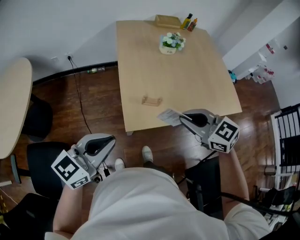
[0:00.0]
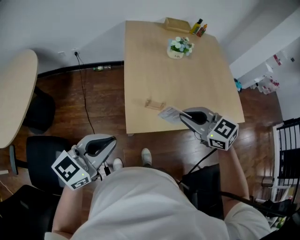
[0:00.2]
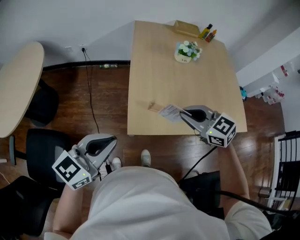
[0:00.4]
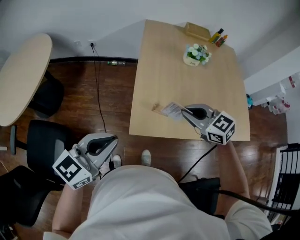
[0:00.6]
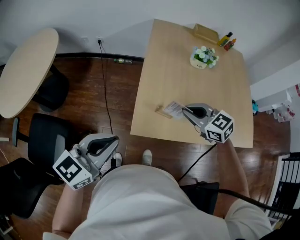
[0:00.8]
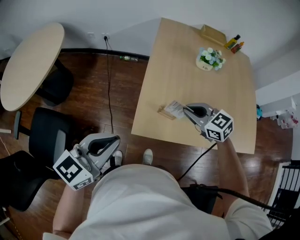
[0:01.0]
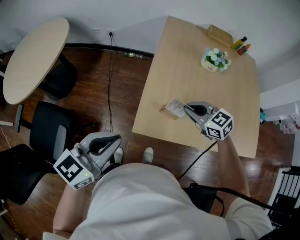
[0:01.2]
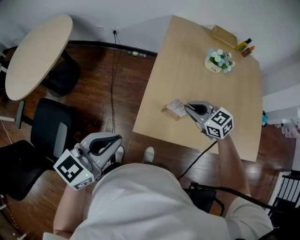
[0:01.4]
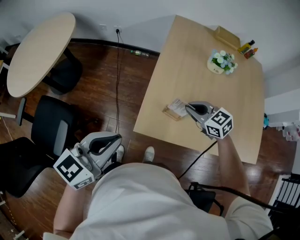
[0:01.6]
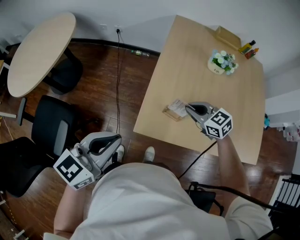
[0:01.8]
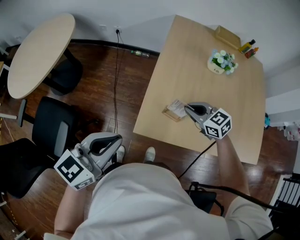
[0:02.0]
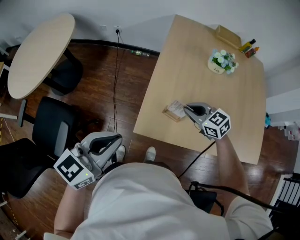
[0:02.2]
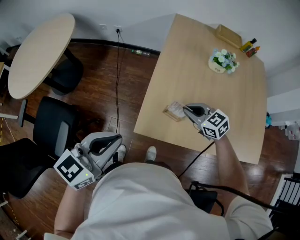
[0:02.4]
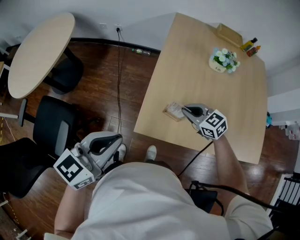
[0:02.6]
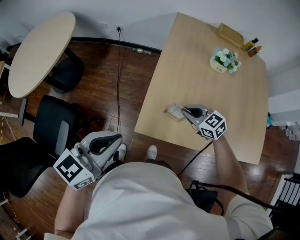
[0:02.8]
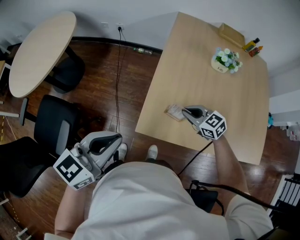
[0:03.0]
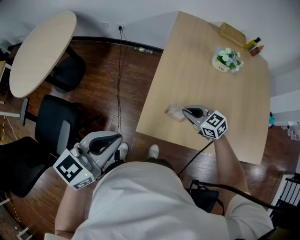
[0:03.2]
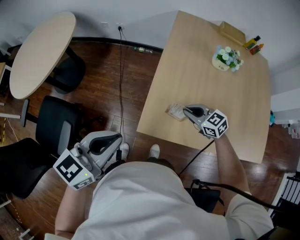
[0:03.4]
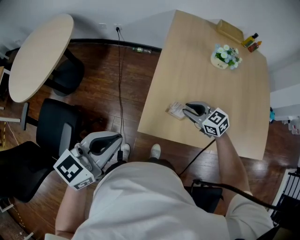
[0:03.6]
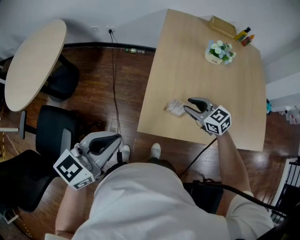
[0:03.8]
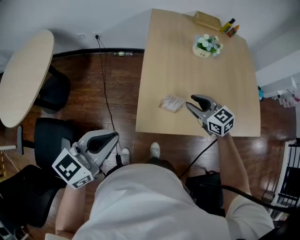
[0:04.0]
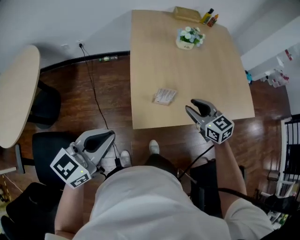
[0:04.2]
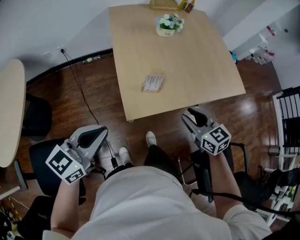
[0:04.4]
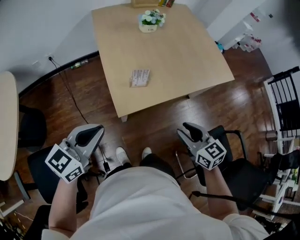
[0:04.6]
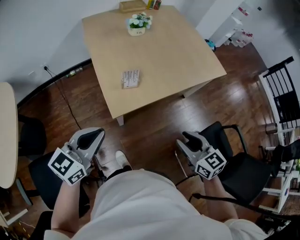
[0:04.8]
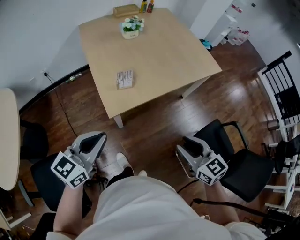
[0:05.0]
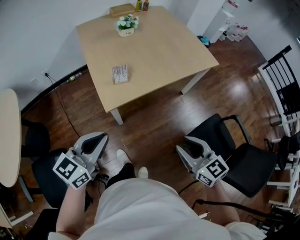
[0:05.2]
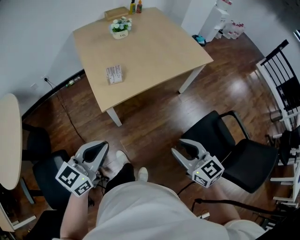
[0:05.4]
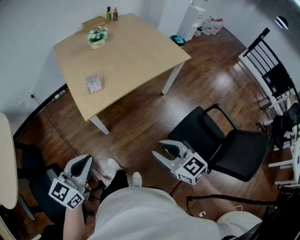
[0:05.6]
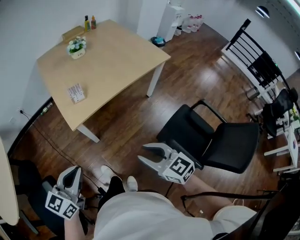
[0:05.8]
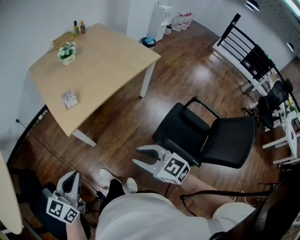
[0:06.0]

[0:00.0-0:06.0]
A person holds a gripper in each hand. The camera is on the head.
0.0 to 1.6 s: The left gripper turns by about 30 degrees. Meanwhile the right gripper travels forward and downward by approximately 20 cm, and swivels some 20 degrees.
1.6 to 3.0 s: The right gripper heads downward, covering approximately 5 cm.
3.0 to 4.4 s: The right gripper ends up roughly 20 cm from where it was, swivels roughly 50 degrees, and opens. Meanwhile the left gripper ends up some 5 cm from where it was, and rotates approximately 30 degrees.
4.4 to 6.0 s: The right gripper moves backward, about 30 cm, while the left gripper moves backward and to the right, about 25 cm.

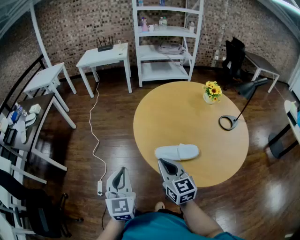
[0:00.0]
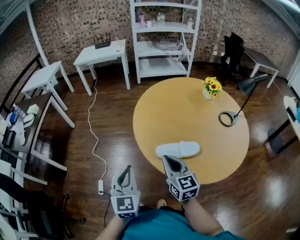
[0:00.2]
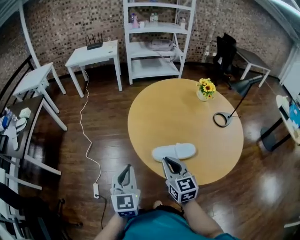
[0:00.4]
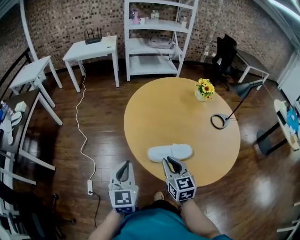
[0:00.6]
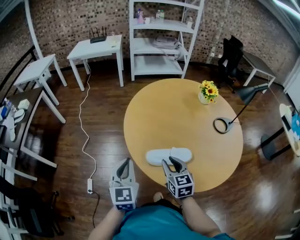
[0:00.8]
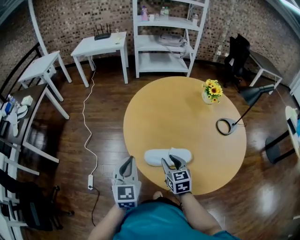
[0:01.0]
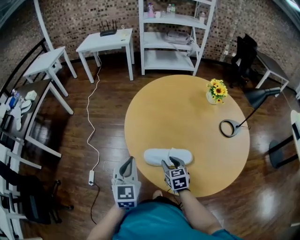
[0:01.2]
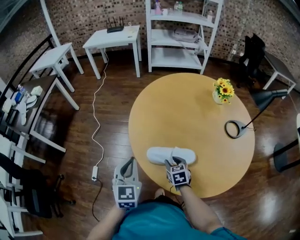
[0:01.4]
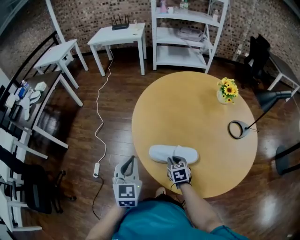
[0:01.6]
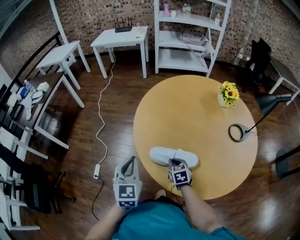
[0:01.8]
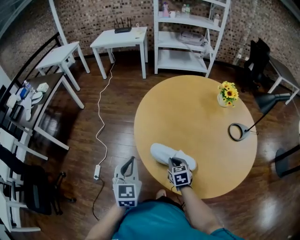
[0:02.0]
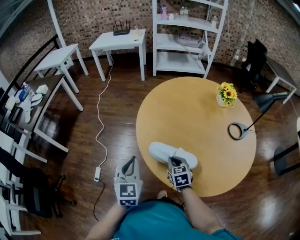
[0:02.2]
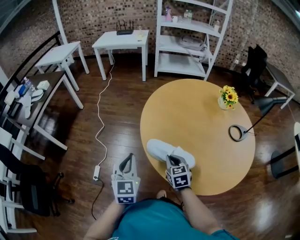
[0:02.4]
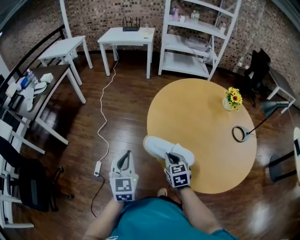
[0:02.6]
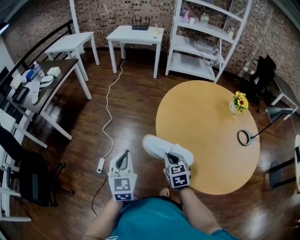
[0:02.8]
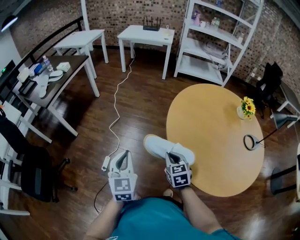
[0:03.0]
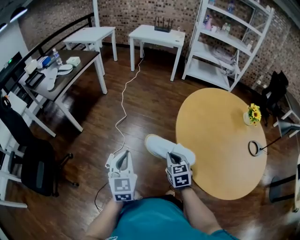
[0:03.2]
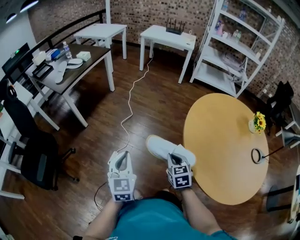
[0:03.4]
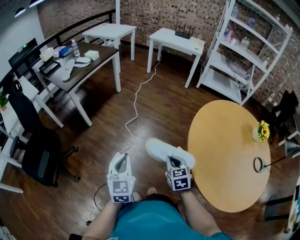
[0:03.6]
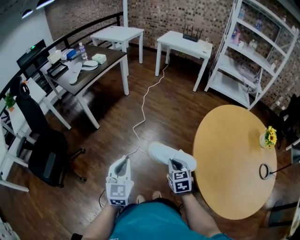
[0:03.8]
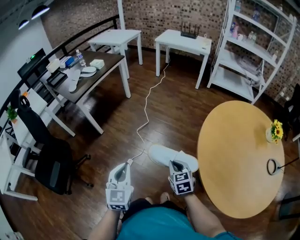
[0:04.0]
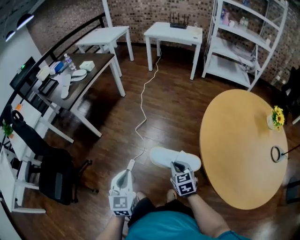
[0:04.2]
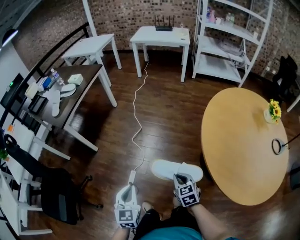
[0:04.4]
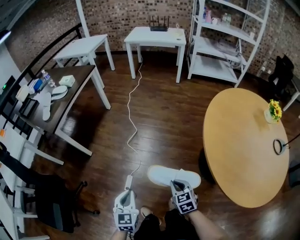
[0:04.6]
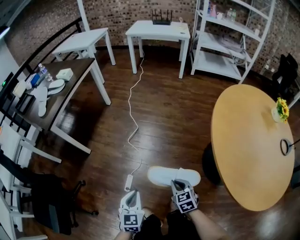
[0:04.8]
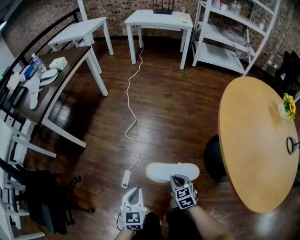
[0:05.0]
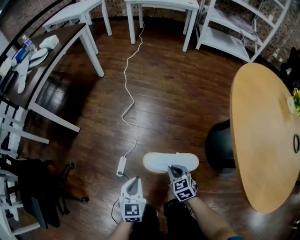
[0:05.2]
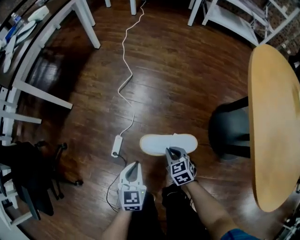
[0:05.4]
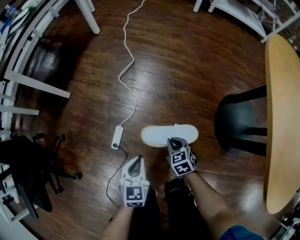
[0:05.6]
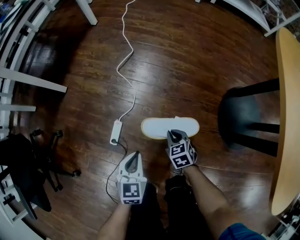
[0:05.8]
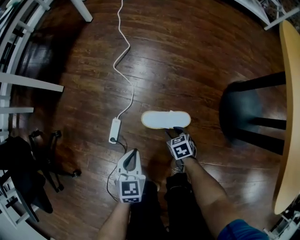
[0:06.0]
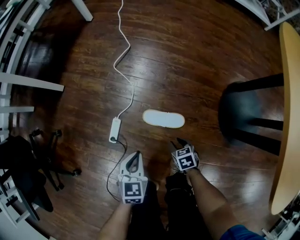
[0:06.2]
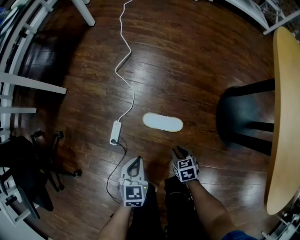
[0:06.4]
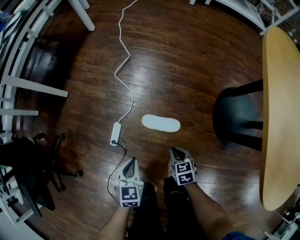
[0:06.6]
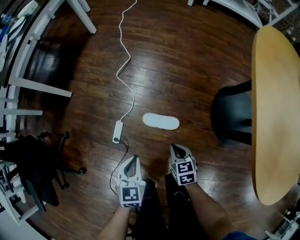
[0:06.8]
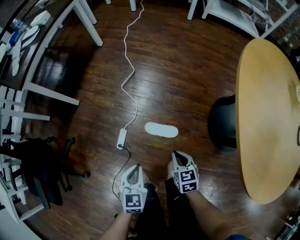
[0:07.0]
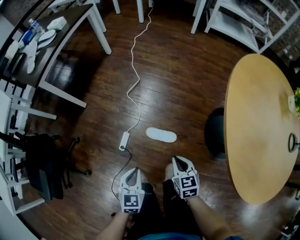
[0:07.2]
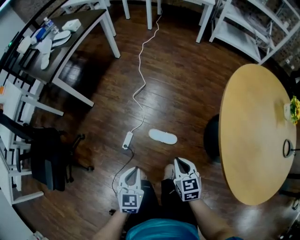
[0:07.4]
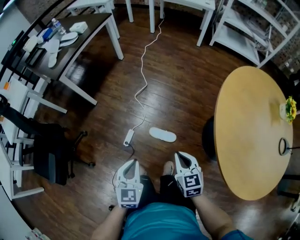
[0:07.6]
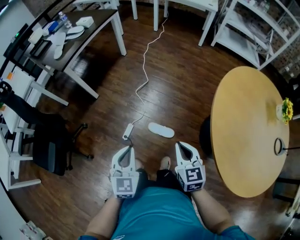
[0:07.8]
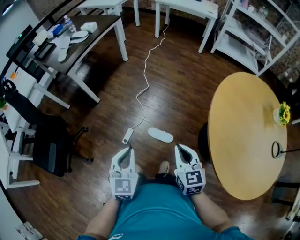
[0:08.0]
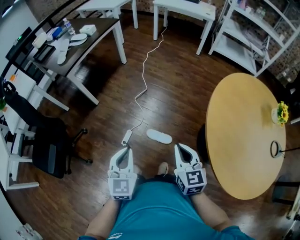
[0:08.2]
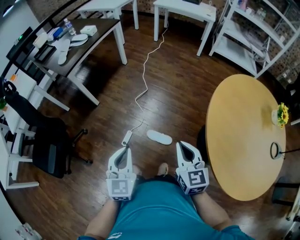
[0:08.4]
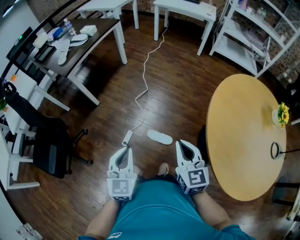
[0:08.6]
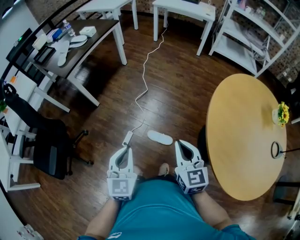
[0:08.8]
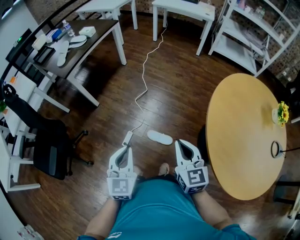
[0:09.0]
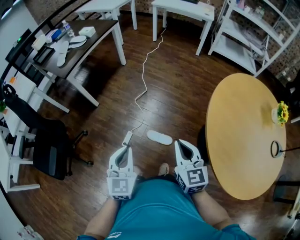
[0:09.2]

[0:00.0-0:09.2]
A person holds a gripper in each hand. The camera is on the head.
0.0 to 1.6 s: The right gripper shifts approximately 30 cm downward, to the right and forward, and tips its fingers downward by roughly 40 degrees, while the left gripper travels to the right, forward and downward by some 15 cm.
1.6 to 3.0 s: The left gripper travels to the left by roughly 25 cm. The right gripper travels to the left and upward by approximately 30 cm.
3.0 to 4.6 s: Both grippers move to the left, downward and forward, some 30 cm.
4.6 to 6.2 s: The two grippers go about 50 cm downward. The right gripper changes its angle by some 30 degrees, and opens up.
6.2 to 7.6 s: Both grippers travel together upward, approximately 50 cm. The right gripper points its fingers roughly 30 degrees further upward, and closes up.
7.6 to 9.2 s: The grippers both shift upward by some 15 cm.

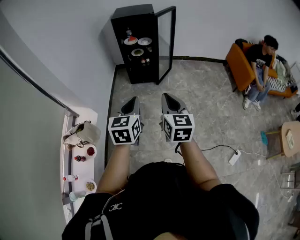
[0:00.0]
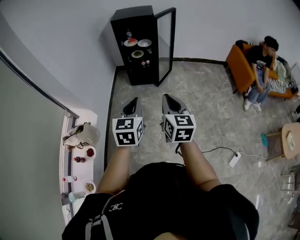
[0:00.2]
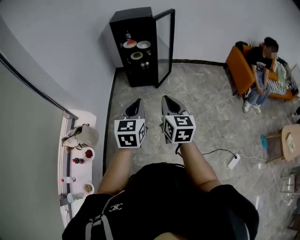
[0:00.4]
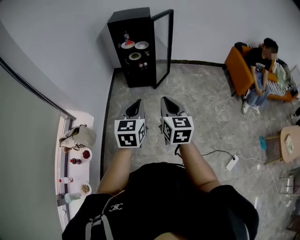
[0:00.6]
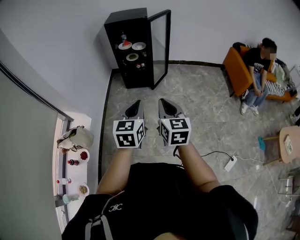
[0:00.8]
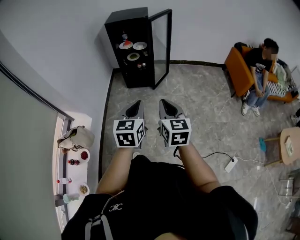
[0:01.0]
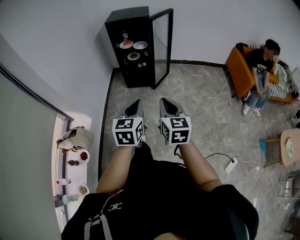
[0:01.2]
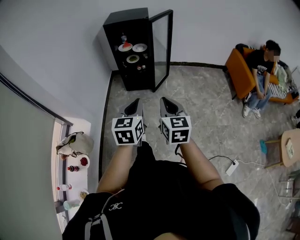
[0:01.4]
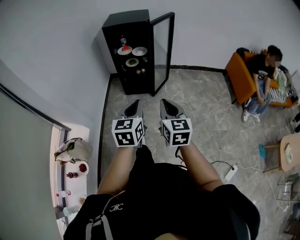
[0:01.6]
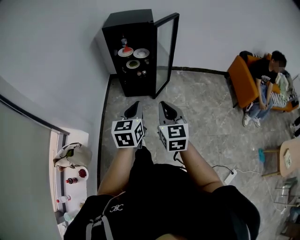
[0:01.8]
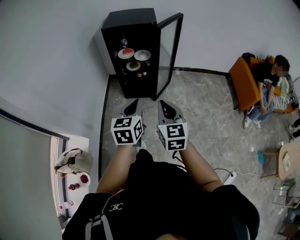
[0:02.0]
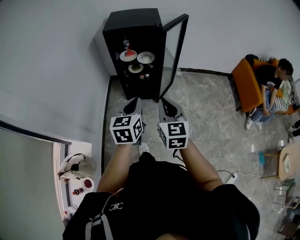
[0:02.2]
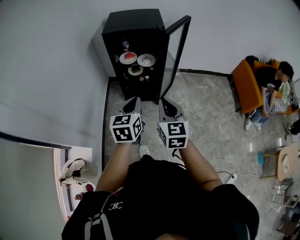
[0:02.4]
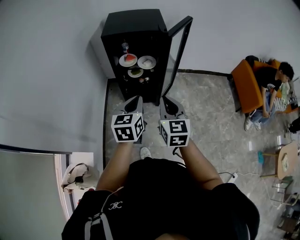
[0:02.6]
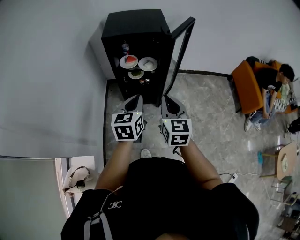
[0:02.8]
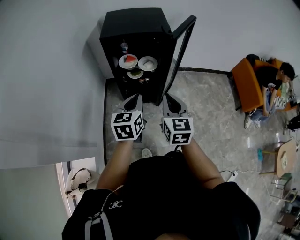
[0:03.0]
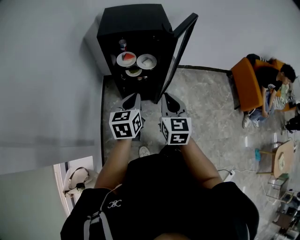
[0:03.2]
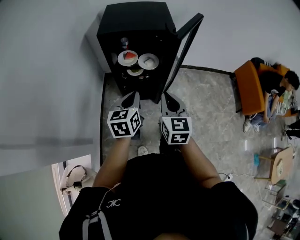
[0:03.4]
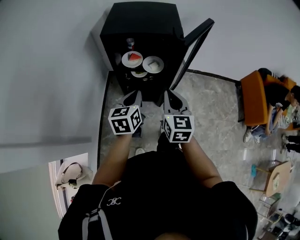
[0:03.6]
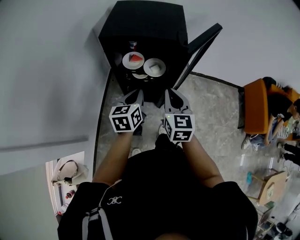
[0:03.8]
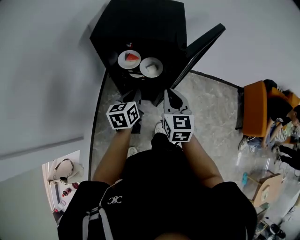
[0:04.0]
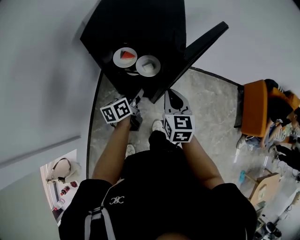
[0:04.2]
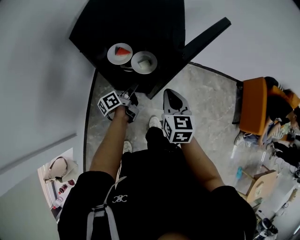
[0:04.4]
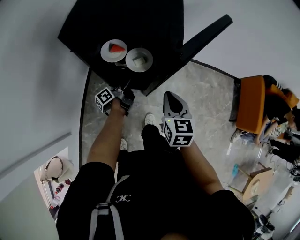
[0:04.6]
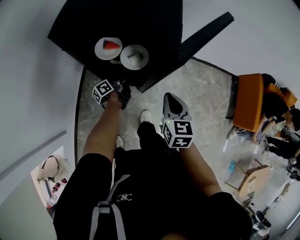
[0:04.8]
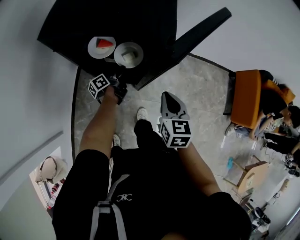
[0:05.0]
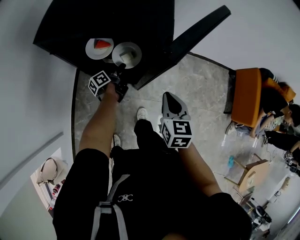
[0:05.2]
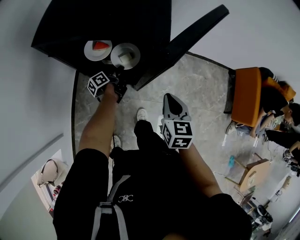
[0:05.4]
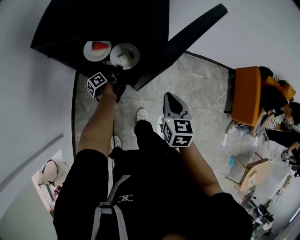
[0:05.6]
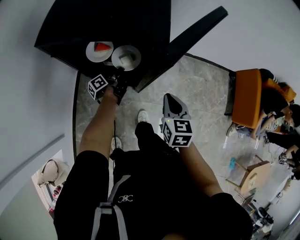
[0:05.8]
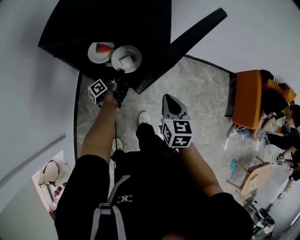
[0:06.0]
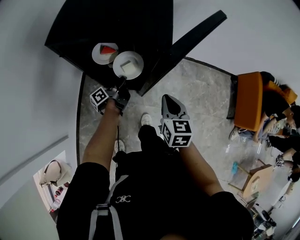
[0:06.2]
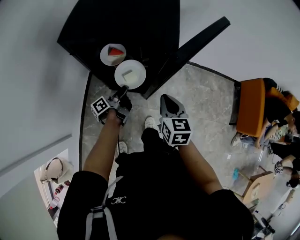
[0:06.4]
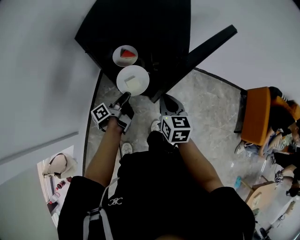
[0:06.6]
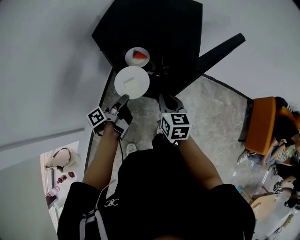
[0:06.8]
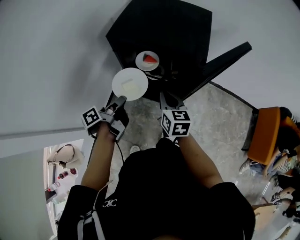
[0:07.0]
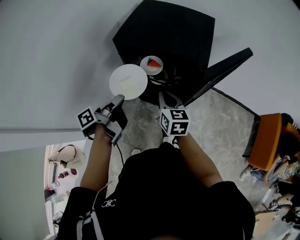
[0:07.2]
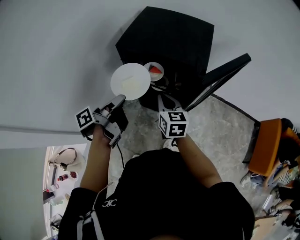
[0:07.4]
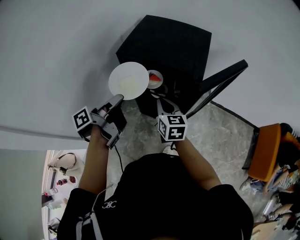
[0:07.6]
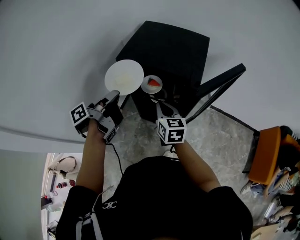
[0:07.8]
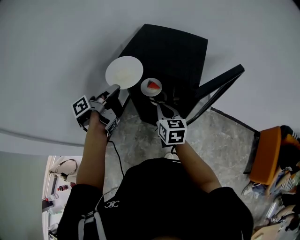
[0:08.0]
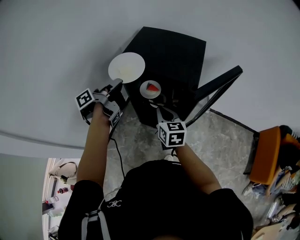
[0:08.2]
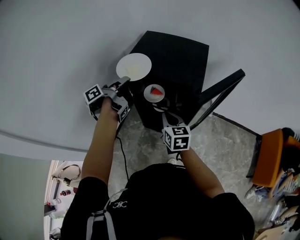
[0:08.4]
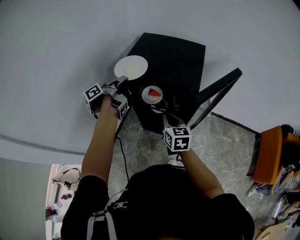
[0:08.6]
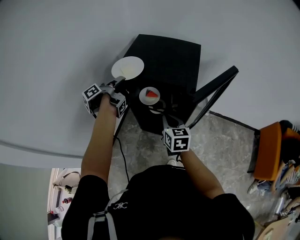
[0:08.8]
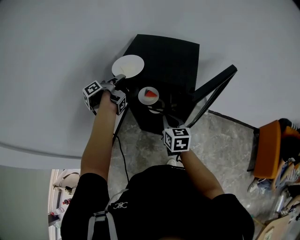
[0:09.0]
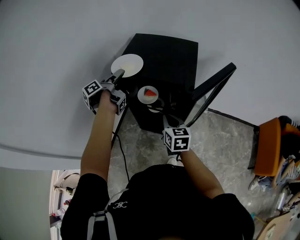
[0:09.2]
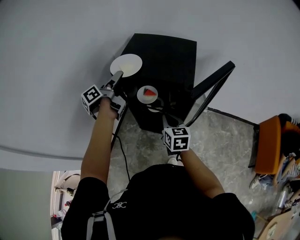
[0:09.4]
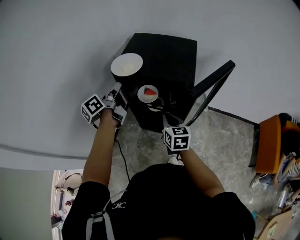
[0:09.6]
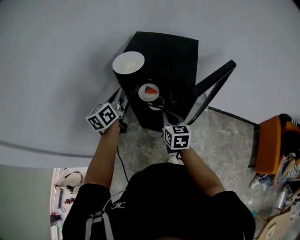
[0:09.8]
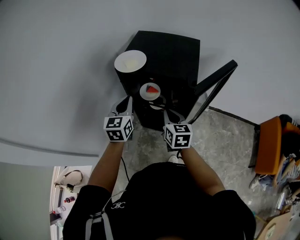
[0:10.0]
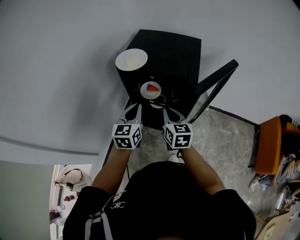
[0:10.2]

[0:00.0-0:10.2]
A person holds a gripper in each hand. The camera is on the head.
0.0 to 1.4 s: The right gripper shifts about 10 cm forward, while the left gripper moves forward and to the right, about 10 cm.
1.4 to 3.0 s: The two grippers travel together, forward, about 40 cm.
3.0 to 4.4 s: The two grippers go approximately 30 cm forward and downward. The left gripper twists approximately 70 degrees counterclockwise, seen from behind.
4.4 to 5.8 s: The left gripper shifts some 15 cm downward and forward, while the right gripper shifts about 10 cm to the right and downward.
5.8 to 7.2 s: The left gripper heads upward, backward and to the left, covering roughly 35 cm; the right gripper shifts approximately 20 cm to the left and upward, and swivels roughly 30 degrees.
7.2 to 8.8 s: The left gripper travels forward and upward by some 20 cm.
8.8 to 10.2 s: The left gripper is displaced backward and to the right by roughly 15 cm, twists approximately 80 degrees clockwise, seen from behind, and opens, then closes once more.
